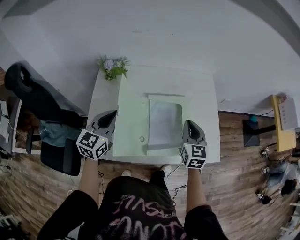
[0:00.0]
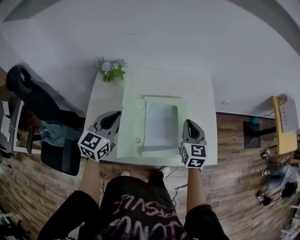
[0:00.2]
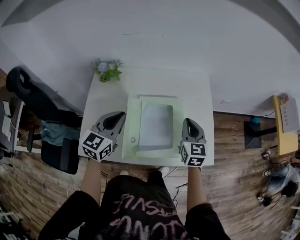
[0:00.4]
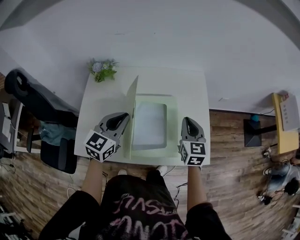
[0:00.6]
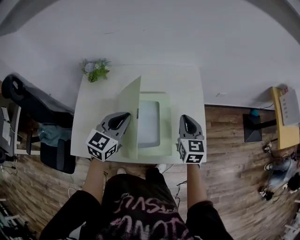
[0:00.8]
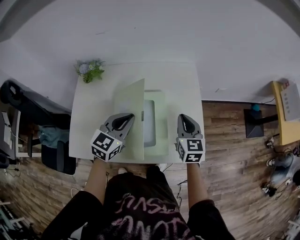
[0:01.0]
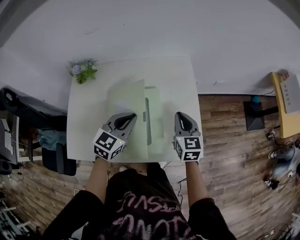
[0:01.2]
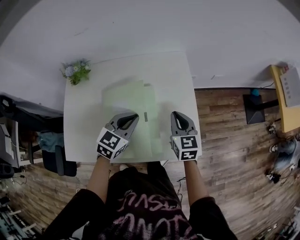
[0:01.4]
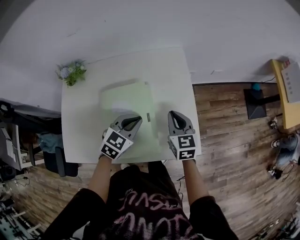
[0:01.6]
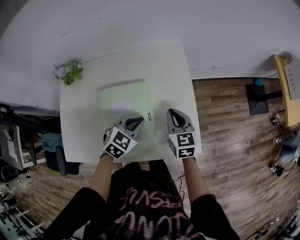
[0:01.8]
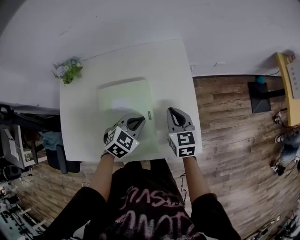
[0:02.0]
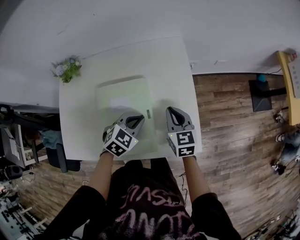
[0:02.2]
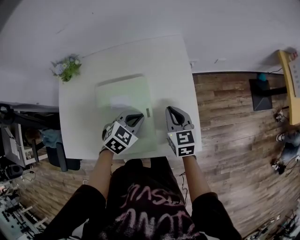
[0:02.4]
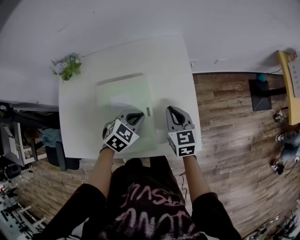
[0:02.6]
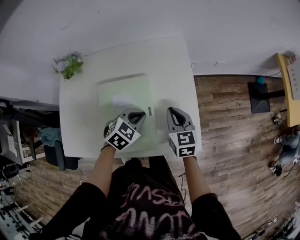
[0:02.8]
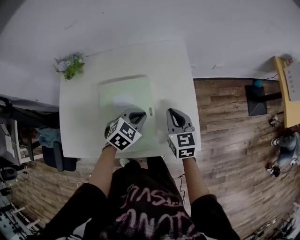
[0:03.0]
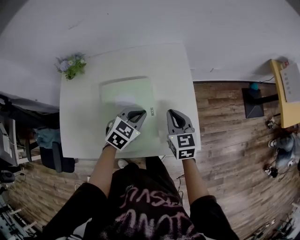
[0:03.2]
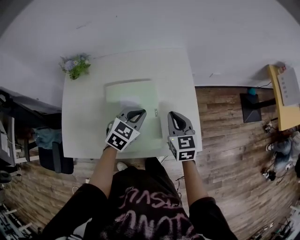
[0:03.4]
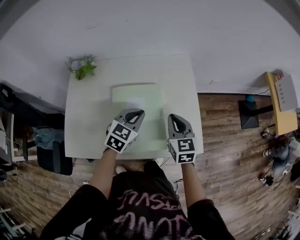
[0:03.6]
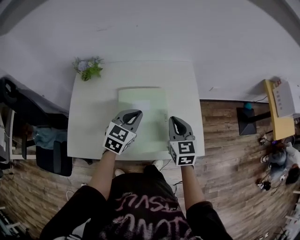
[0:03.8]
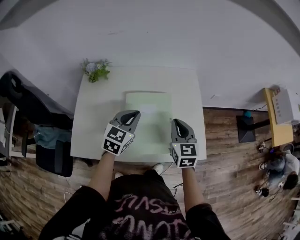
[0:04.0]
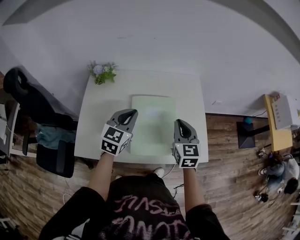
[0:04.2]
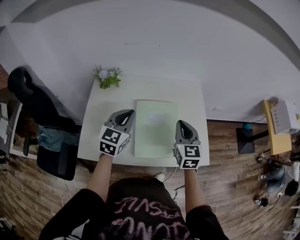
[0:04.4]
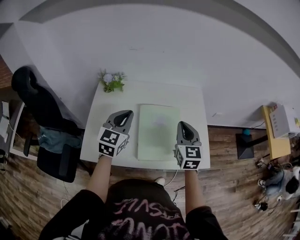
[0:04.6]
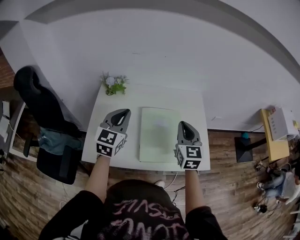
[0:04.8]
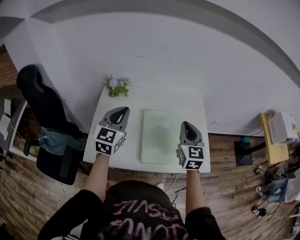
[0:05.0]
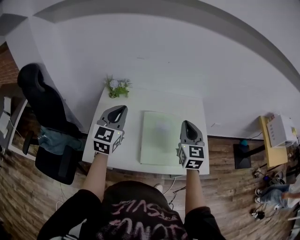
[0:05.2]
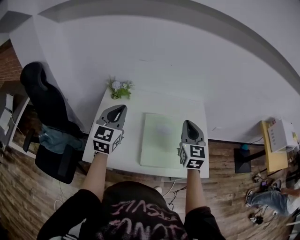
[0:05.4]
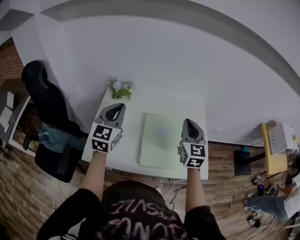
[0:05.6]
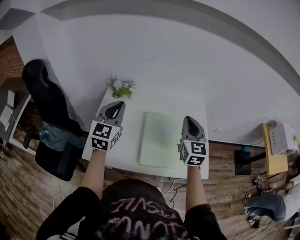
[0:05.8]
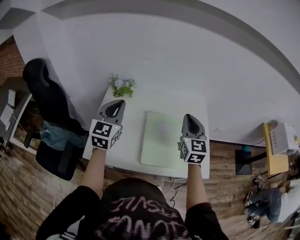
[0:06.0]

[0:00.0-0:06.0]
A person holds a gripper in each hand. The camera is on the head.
0.0 to 1.6 s: The right gripper is displaced to the right, downward and forward by some 15 cm; the left gripper is displaced to the right by about 30 cm, and swivels about 30 degrees.
1.6 to 3.0 s: The grippers move only a little.
3.0 to 4.4 s: The left gripper is displaced to the left and upward by some 30 cm, and points its fingers roughly 30 degrees further upward. The right gripper moves upward and to the left, roughly 20 cm.
4.4 to 6.0 s: The right gripper moves upward, roughly 10 cm, while the left gripper goes some 15 cm to the left and upward.

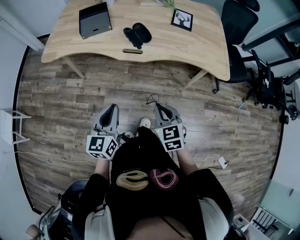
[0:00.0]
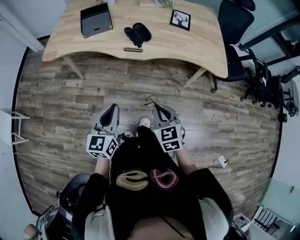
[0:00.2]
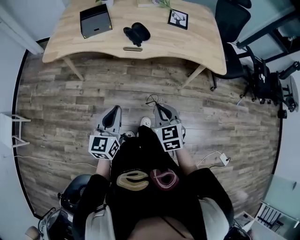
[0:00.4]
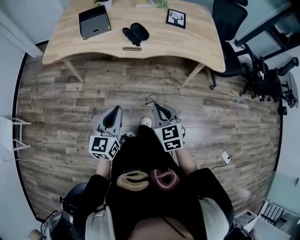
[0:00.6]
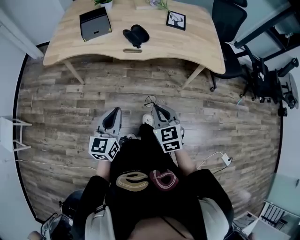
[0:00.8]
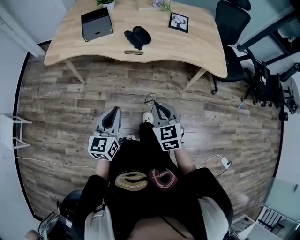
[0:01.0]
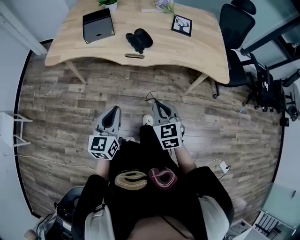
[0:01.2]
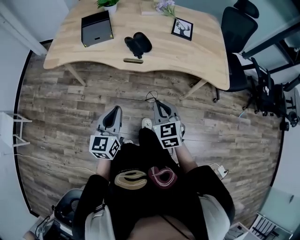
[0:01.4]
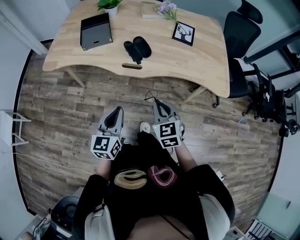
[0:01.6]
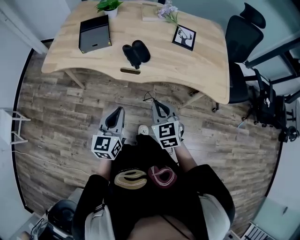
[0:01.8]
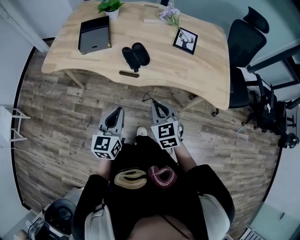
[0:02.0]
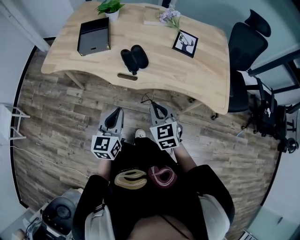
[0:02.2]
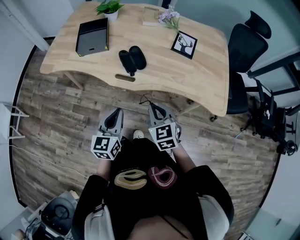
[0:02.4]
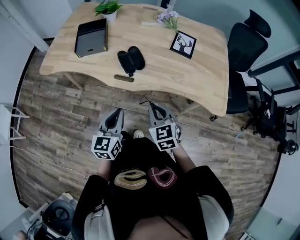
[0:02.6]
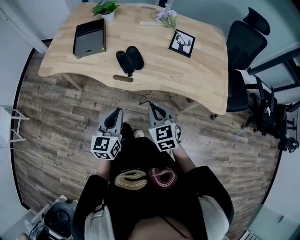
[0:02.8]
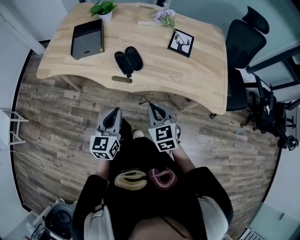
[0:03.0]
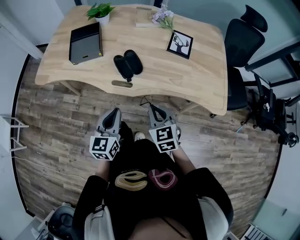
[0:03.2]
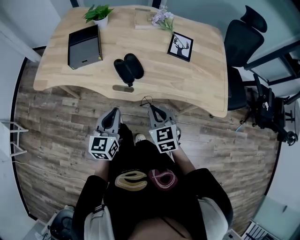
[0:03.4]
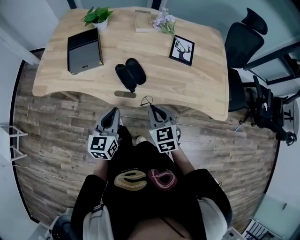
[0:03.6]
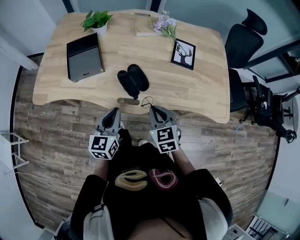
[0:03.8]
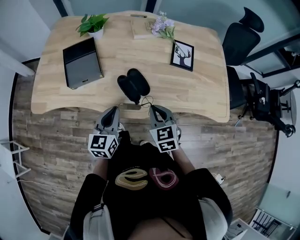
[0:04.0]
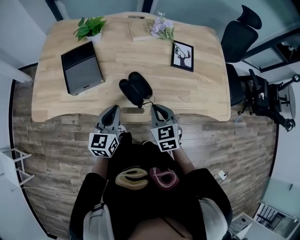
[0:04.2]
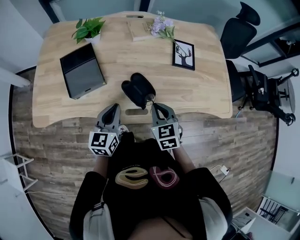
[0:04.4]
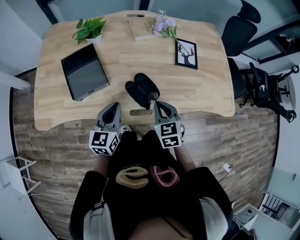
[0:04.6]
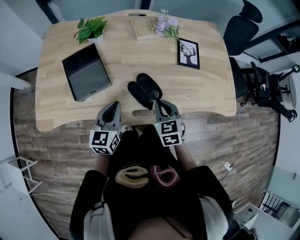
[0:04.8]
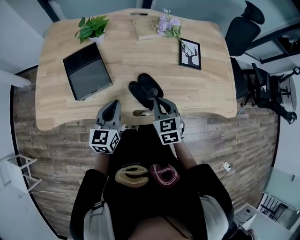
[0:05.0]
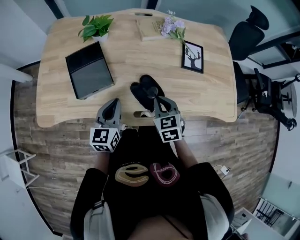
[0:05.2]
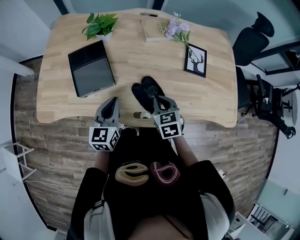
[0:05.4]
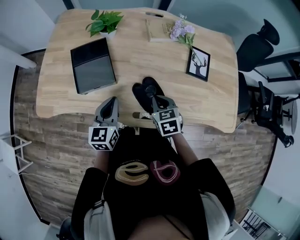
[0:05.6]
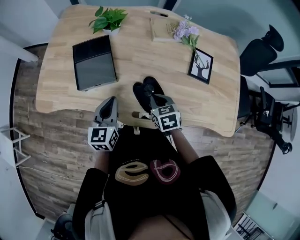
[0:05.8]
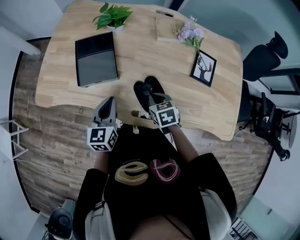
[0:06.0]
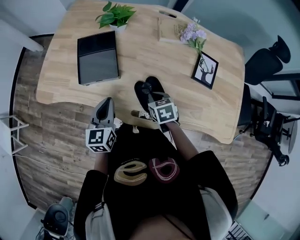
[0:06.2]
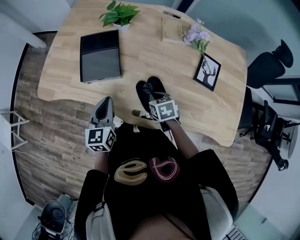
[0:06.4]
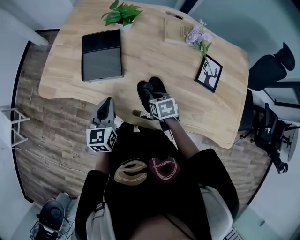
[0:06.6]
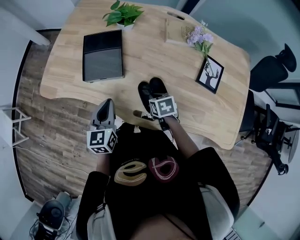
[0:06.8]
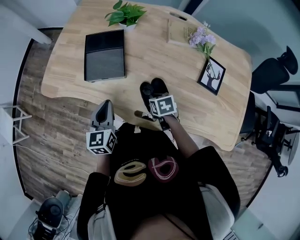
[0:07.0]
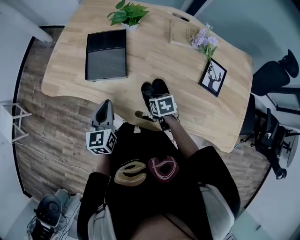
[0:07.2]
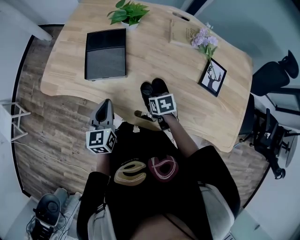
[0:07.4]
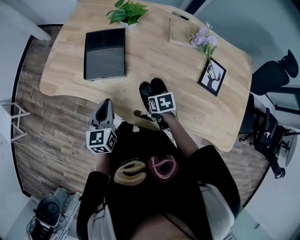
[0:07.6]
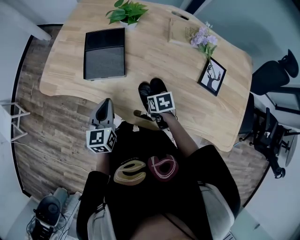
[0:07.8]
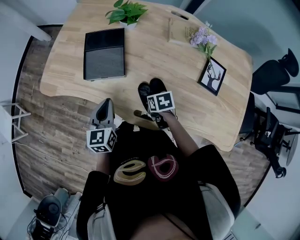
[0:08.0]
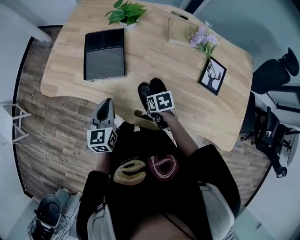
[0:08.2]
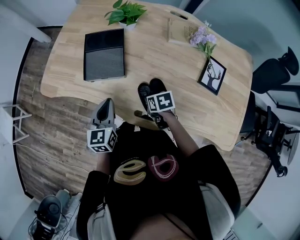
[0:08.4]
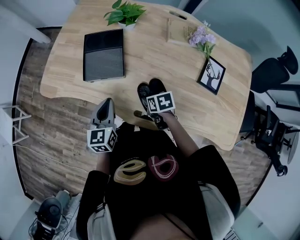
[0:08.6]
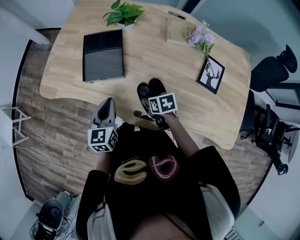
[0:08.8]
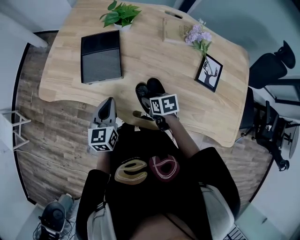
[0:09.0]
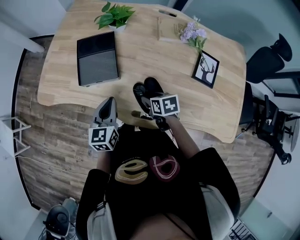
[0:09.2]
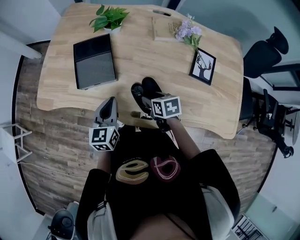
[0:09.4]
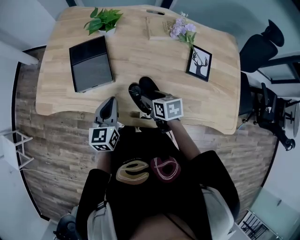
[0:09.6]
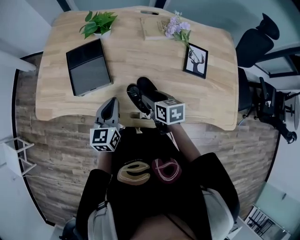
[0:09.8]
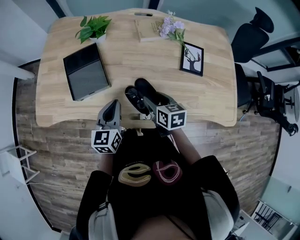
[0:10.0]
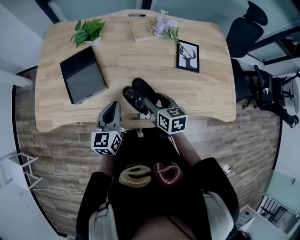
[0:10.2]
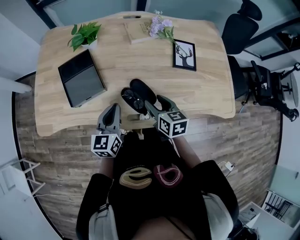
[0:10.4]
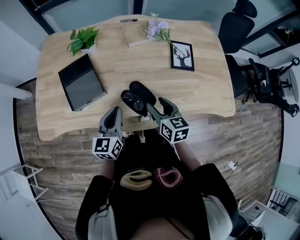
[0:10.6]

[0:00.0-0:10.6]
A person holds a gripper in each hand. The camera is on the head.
0.0 to 1.6 s: The left gripper moves forward, some 5 cm, while the right gripper moves forward, roughly 10 cm.
1.6 to 3.0 s: The left gripper travels forward and to the right by some 10 cm; the right gripper travels forward by approximately 10 cm.
3.0 to 4.6 s: Both grippers move forward and to the left, approximately 25 cm. The right gripper changes its angle by approximately 20 degrees.
4.6 to 6.0 s: The right gripper goes approximately 10 cm forward and downward, and turns by some 30 degrees. The left gripper turns by roughly 20 degrees.
6.0 to 7.6 s: The right gripper heads downward, covering about 5 cm.
7.6 to 9.0 s: The right gripper opens.
9.0 to 10.6 s: The right gripper heads upward, covering about 10 cm, and rotates approximately 40 degrees. Meanwhile the left gripper ends up some 10 cm from where it was, and swivels roughly 30 degrees.

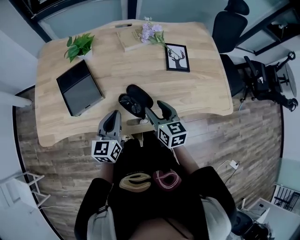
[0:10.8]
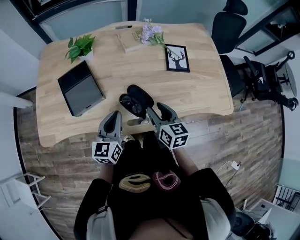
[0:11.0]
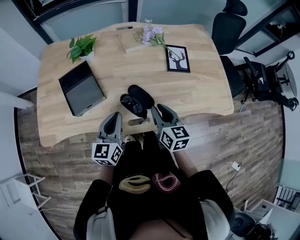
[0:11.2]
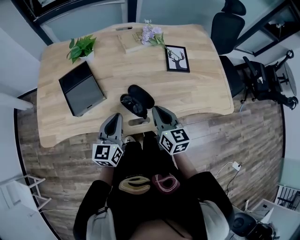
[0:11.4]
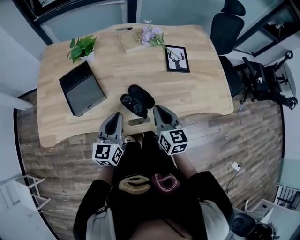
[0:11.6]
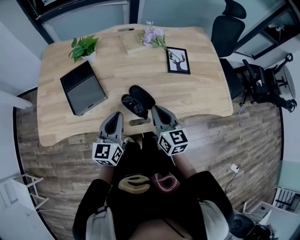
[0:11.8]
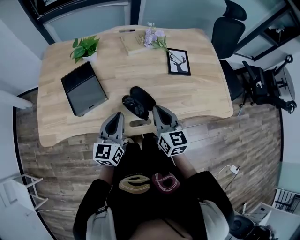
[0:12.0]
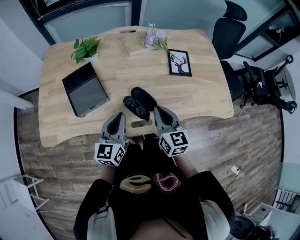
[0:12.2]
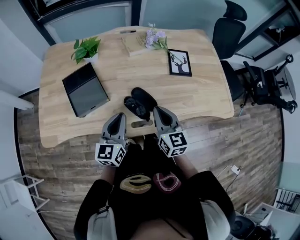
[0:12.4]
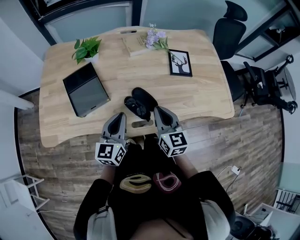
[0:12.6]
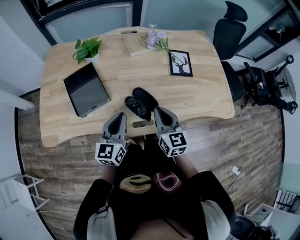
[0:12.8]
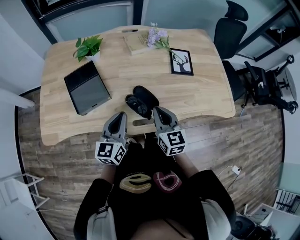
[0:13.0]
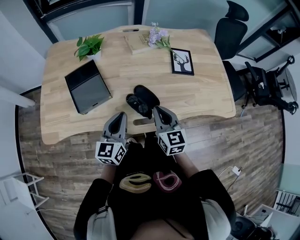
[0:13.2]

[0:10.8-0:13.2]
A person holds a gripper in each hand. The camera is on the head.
10.8 to 12.0 s: The right gripper closes.
12.0 to 13.2 s: The grippers move only a little.

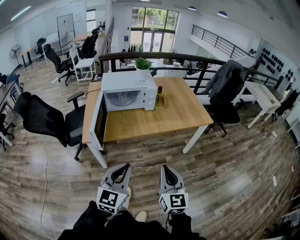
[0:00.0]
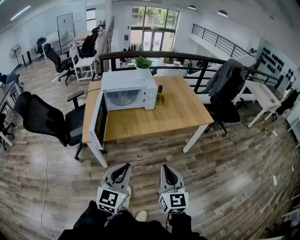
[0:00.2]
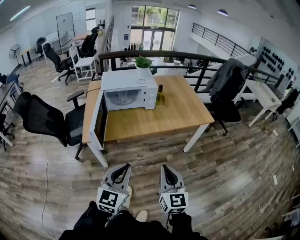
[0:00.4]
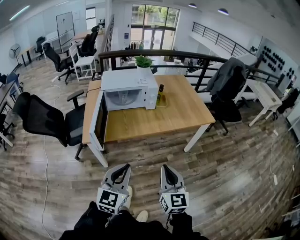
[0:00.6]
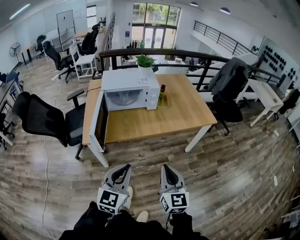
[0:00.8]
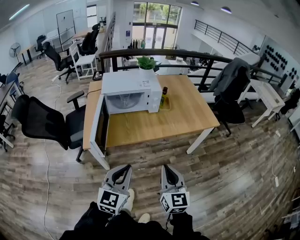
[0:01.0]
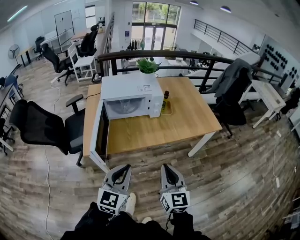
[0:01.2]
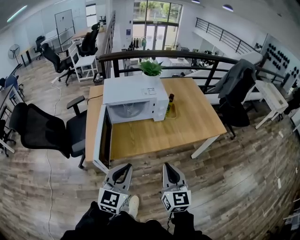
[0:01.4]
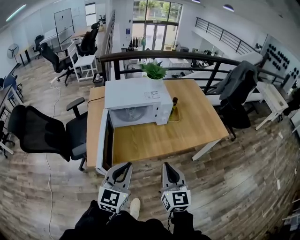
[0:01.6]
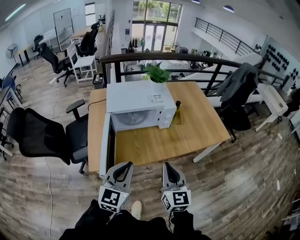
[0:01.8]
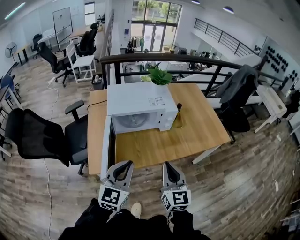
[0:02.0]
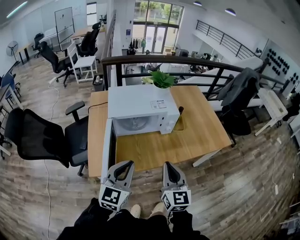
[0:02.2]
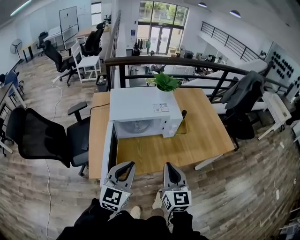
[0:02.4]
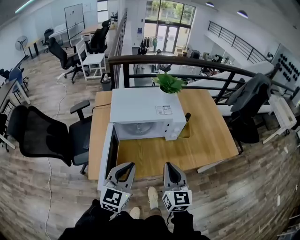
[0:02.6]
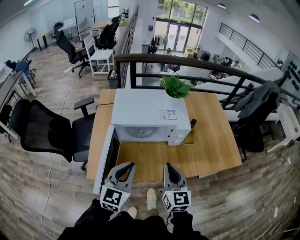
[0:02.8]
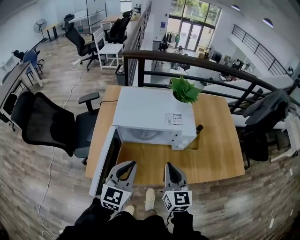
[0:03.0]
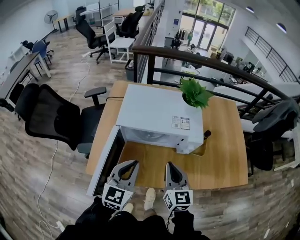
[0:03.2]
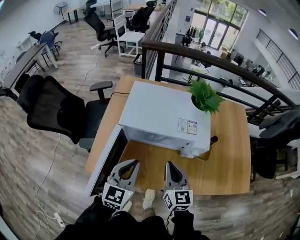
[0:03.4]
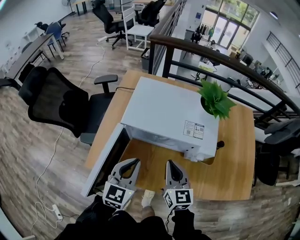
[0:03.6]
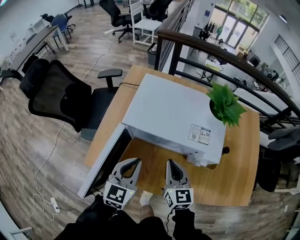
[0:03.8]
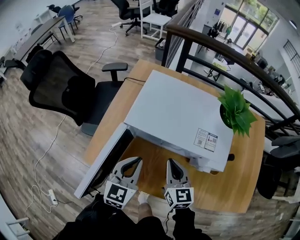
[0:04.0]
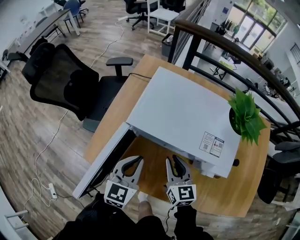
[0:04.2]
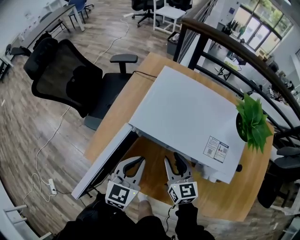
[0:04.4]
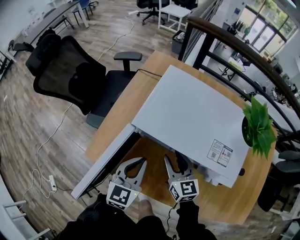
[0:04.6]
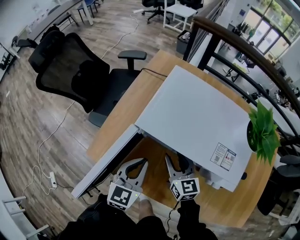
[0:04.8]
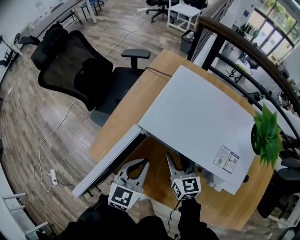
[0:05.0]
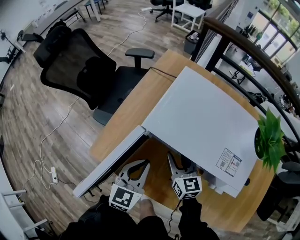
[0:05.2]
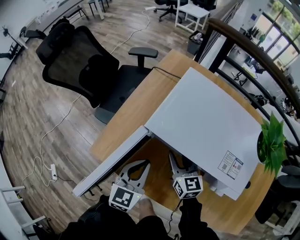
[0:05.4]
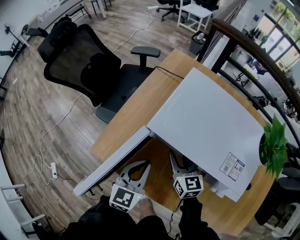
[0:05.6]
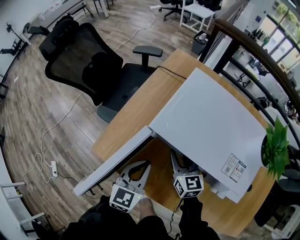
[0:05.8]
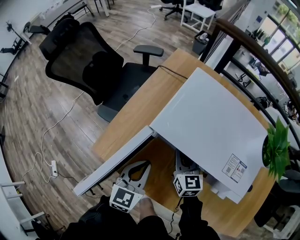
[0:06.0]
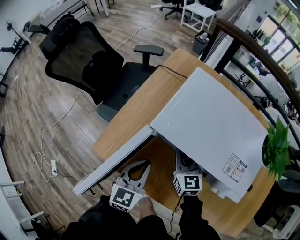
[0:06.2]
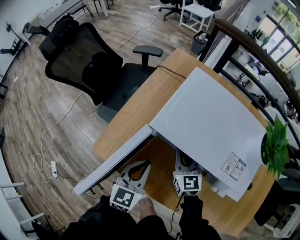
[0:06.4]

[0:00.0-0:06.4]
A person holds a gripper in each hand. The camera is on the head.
0.0 to 1.6 s: Both grippers move forward and to the left, approximately 25 cm.
1.6 to 3.2 s: The grippers both shift forward by roughly 30 cm.
3.2 to 4.8 s: The right gripper shifts by about 25 cm, changes its angle by roughly 30 degrees, and opens. Meanwhile the left gripper shifts about 15 cm downward, and rotates roughly 20 degrees.
4.8 to 6.4 s: The right gripper closes up.
